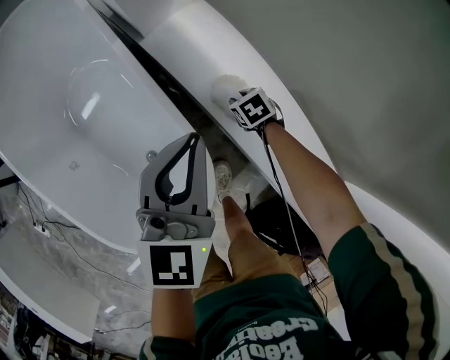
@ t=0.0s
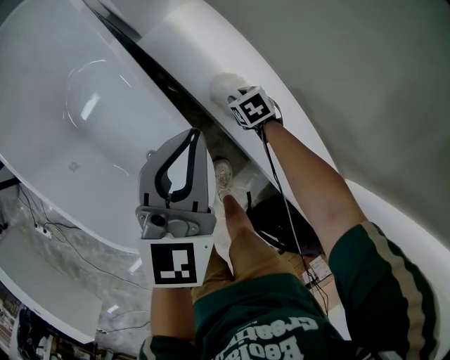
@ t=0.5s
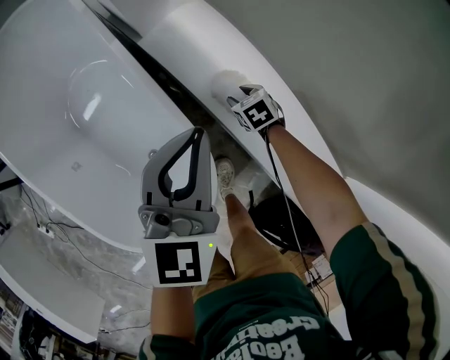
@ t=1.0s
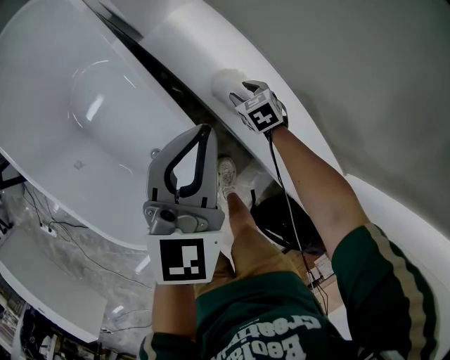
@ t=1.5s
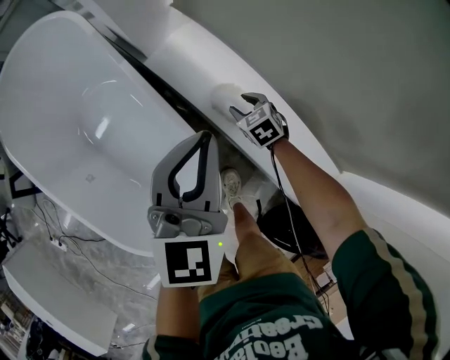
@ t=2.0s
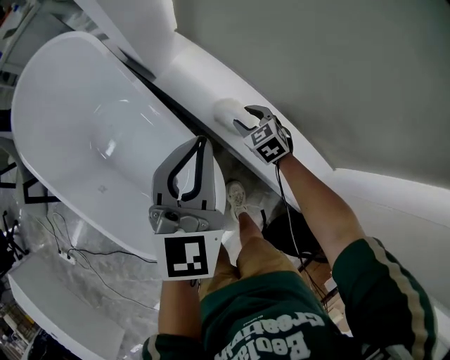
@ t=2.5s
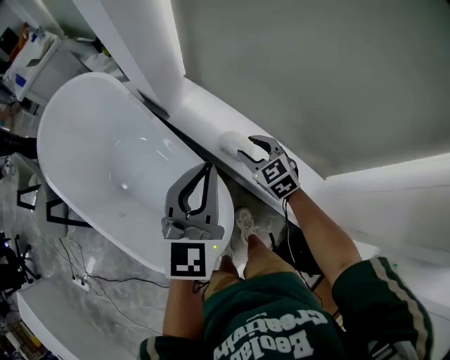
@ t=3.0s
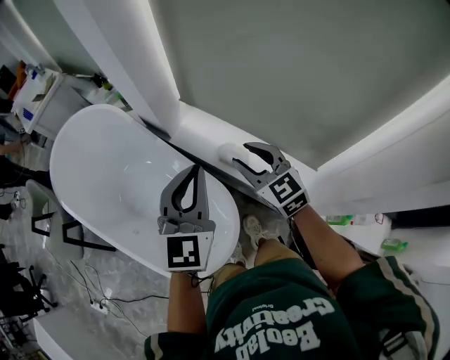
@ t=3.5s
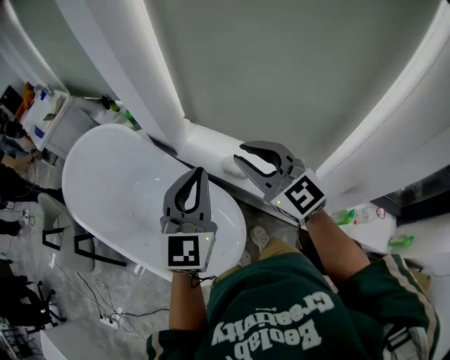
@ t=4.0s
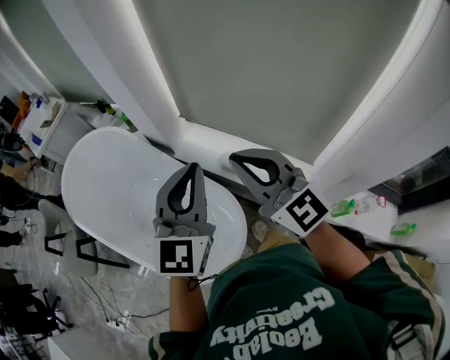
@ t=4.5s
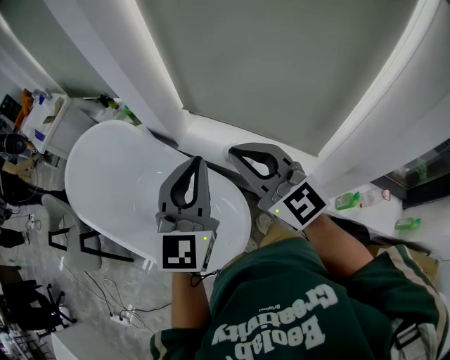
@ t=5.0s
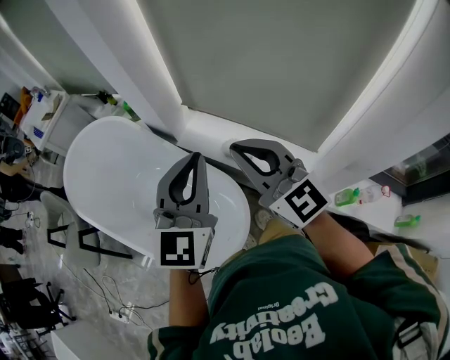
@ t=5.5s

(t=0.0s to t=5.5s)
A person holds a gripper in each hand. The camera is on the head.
t=0.0s - t=2.0s: The right gripper moves upward, roughly 10 cm, and opens. Meanwhile the left gripper goes approximately 5 cm upward.
t=2.0s - t=3.5s: The left gripper shifts approximately 20 cm upward and backward. Meanwhile the right gripper goes approximately 40 cm upward, and angles its fingers upward, by approximately 40 degrees.
t=3.5s - t=5.5s: The right gripper travels upward and backward by about 20 cm, turns by approximately 20 degrees, and closes up. The left gripper moves upward and backward, some 10 cm.

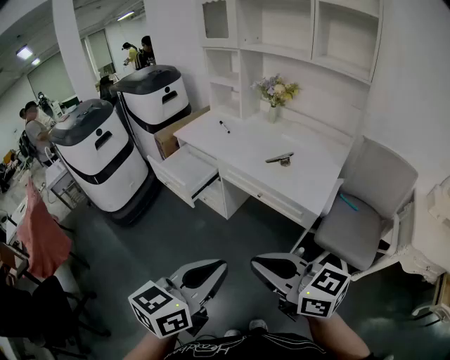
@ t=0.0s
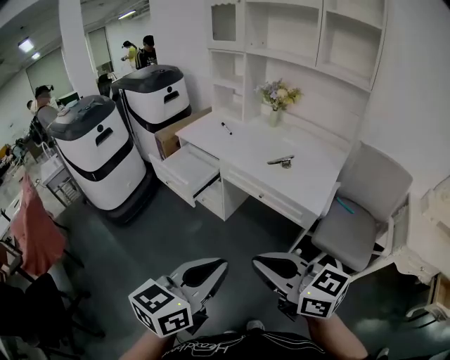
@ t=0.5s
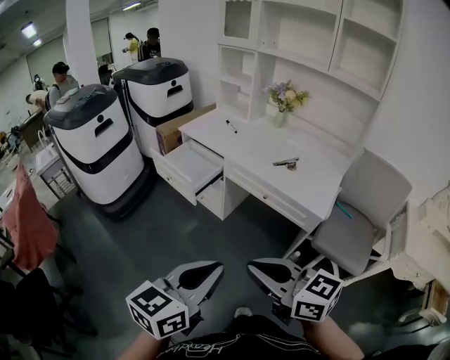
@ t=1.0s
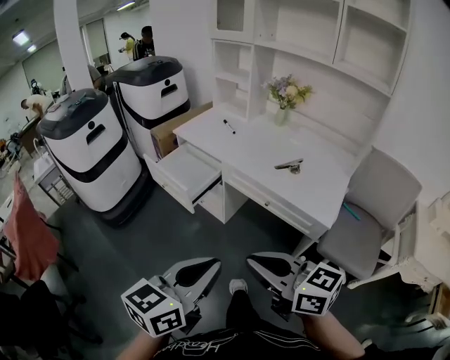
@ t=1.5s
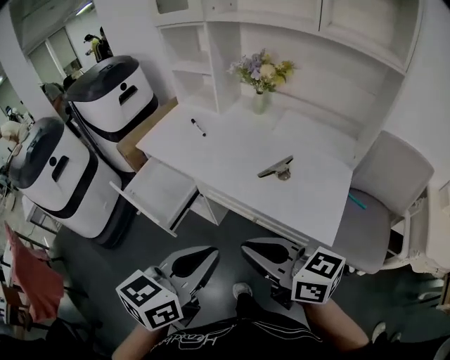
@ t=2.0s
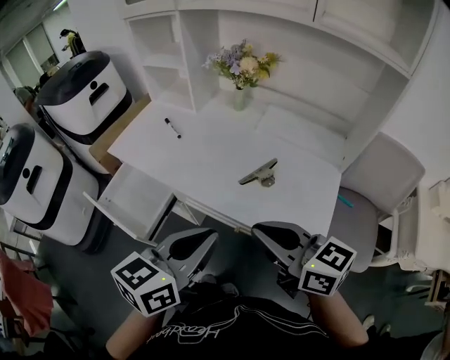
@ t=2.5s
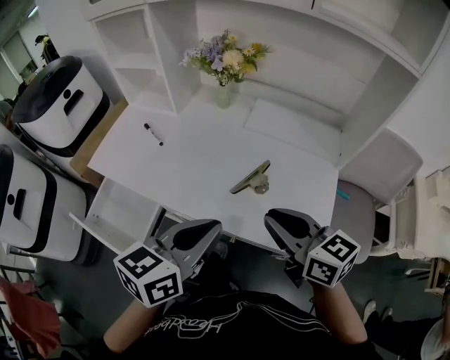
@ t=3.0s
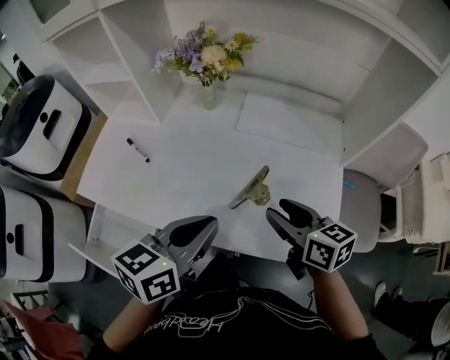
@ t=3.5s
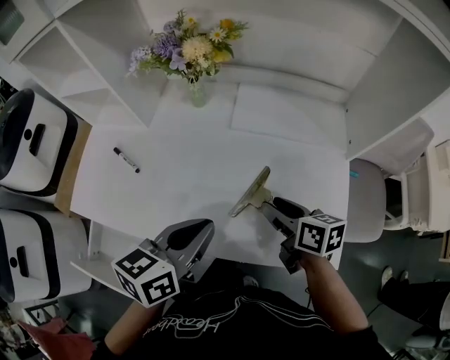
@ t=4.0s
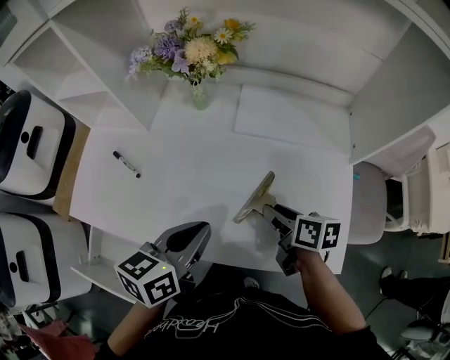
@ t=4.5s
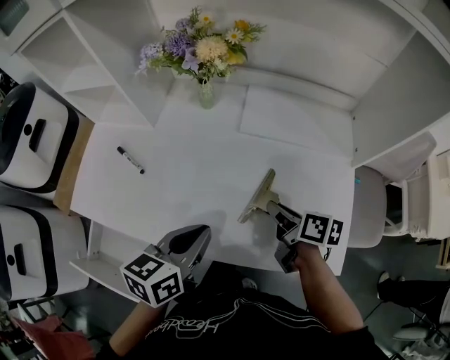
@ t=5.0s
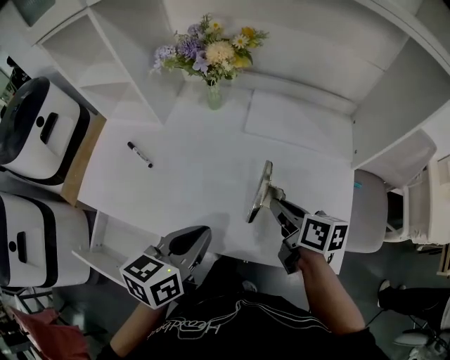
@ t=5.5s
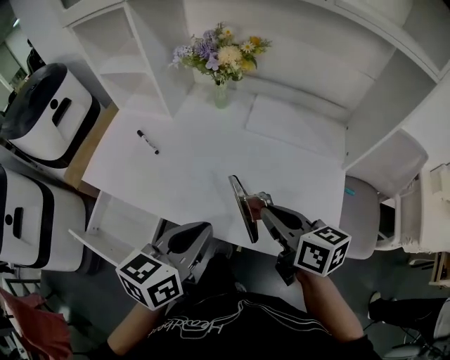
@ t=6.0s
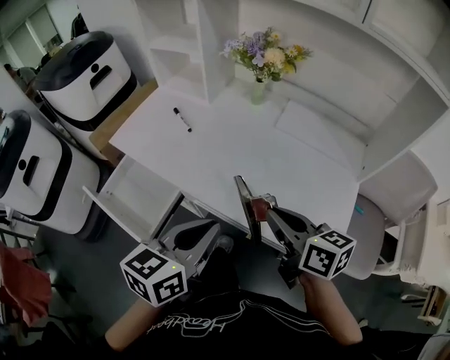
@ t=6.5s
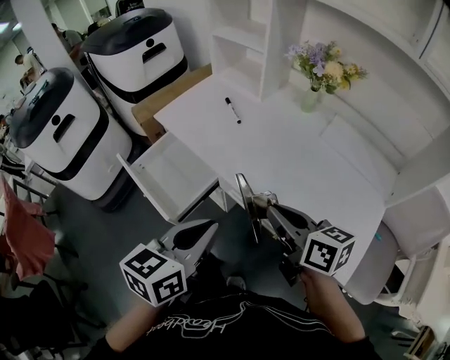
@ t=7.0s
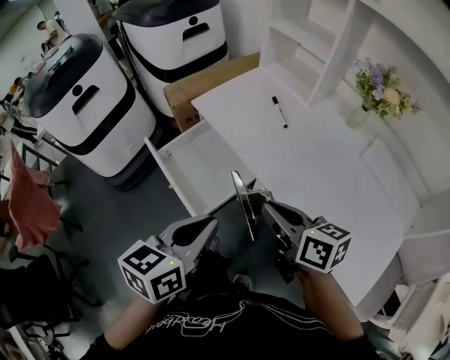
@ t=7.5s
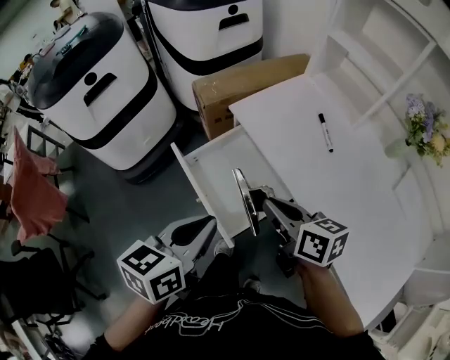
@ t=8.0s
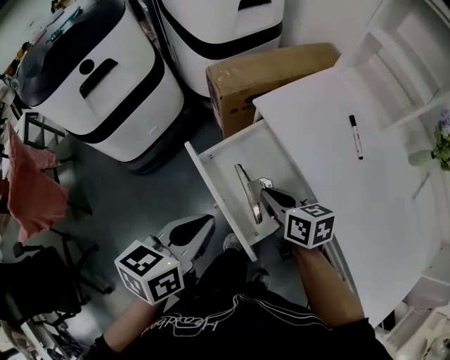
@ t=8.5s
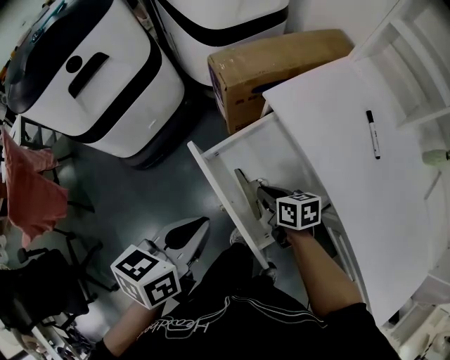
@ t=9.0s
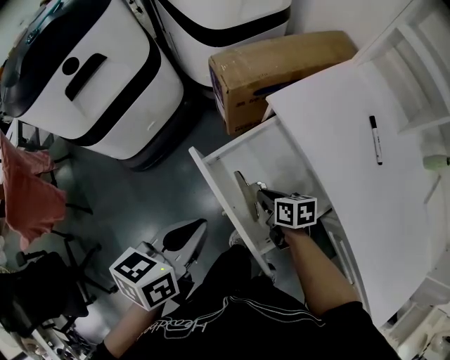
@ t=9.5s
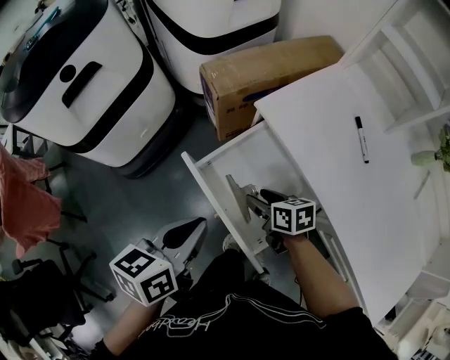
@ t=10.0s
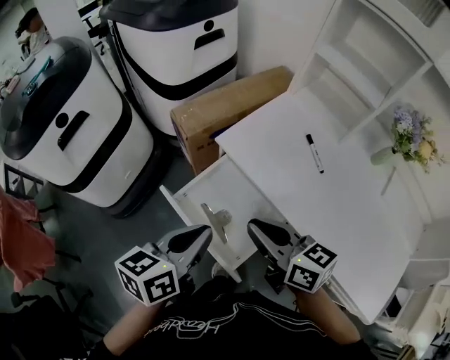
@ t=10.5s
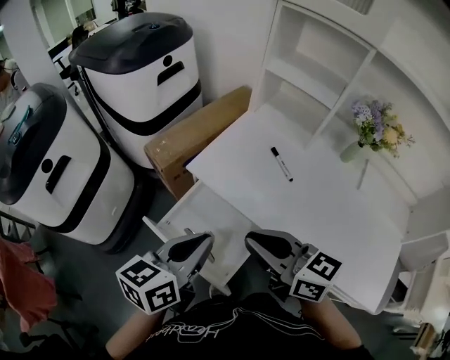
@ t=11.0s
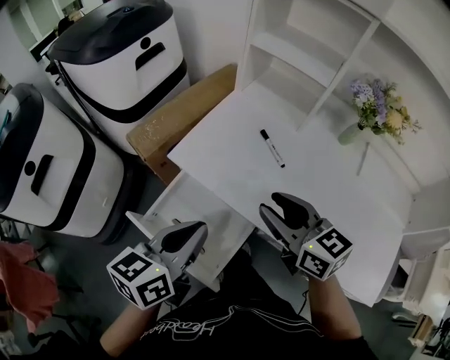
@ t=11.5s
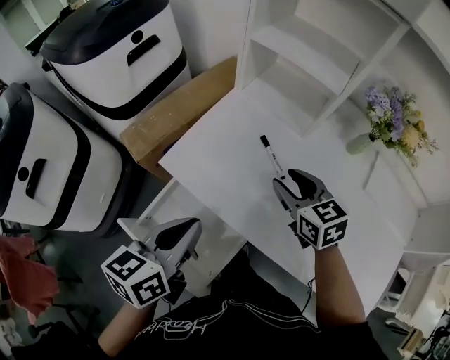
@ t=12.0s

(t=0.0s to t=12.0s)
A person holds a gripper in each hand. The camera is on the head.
t=0.0s - t=2.0s: Both grippers move forward, approximately 30 cm.
t=2.0s - t=4.0s: The left gripper changes place by roughly 35 cm, and turns by roughly 20 degrees. The right gripper moves approximately 40 cm, swivels approximately 50 degrees, and opens.
t=4.0s - t=6.0s: The left gripper goes about 10 cm backward, while the right gripper travels upward and backward by roughly 15 cm, and closes up.
t=6.0s - t=8.0s: The right gripper moves about 40 cm, and turns by roughly 40 degrees, while the left gripper shifts by roughly 40 cm, and turns by roughly 40 degrees.
t=8.0s - t=10.0s: The left gripper shifts roughly 15 cm to the left, forward and downward. The right gripper shifts some 25 cm downward, forward and to the left, turns by roughly 20 degrees, and opens up.
t=10.0s - t=12.0s: The right gripper moves roughly 35 cm, rotates roughly 40 degrees, and closes and opens again. Meanwhile the left gripper changes place by approximately 25 cm.

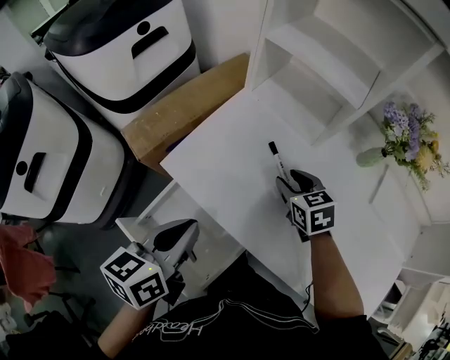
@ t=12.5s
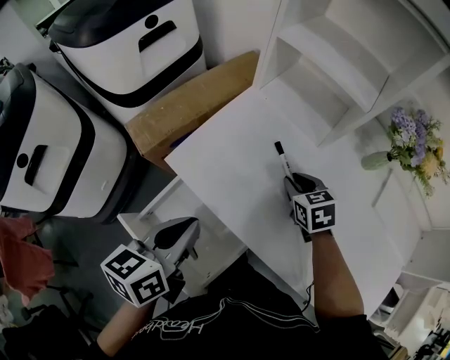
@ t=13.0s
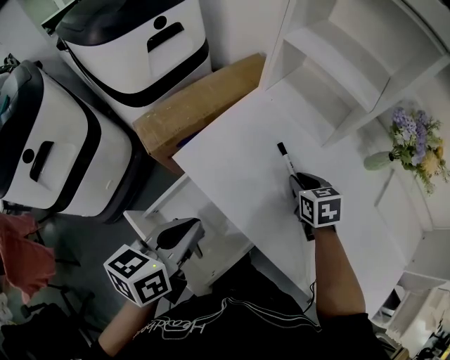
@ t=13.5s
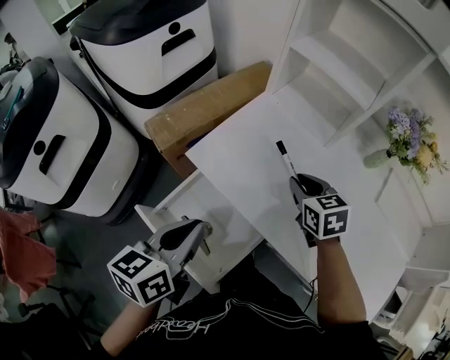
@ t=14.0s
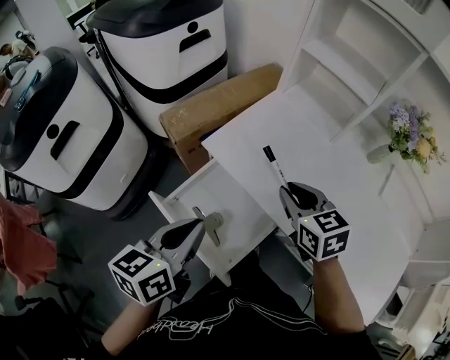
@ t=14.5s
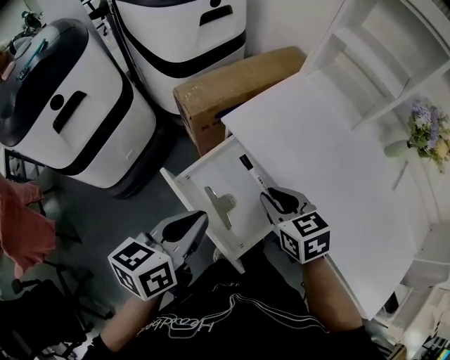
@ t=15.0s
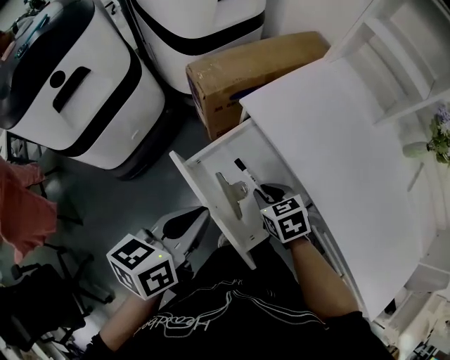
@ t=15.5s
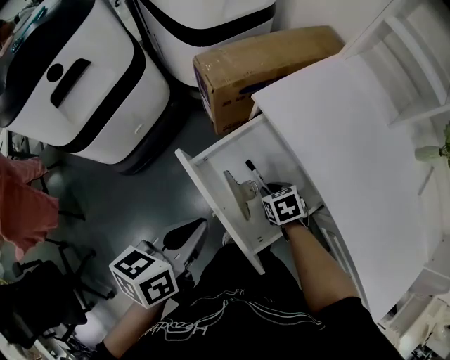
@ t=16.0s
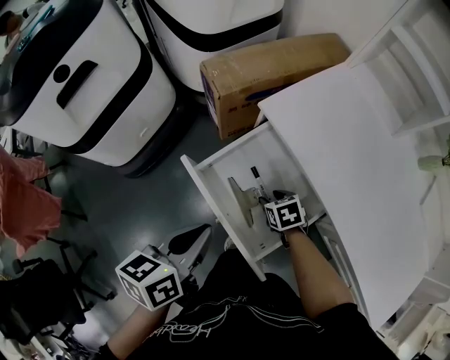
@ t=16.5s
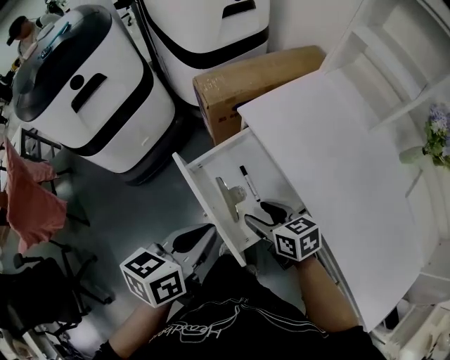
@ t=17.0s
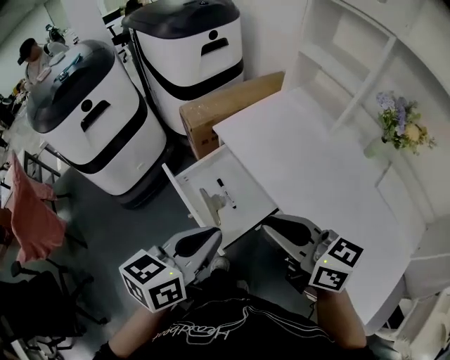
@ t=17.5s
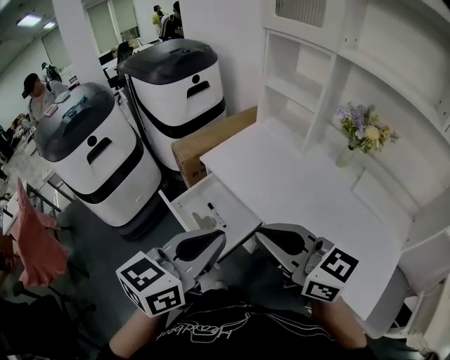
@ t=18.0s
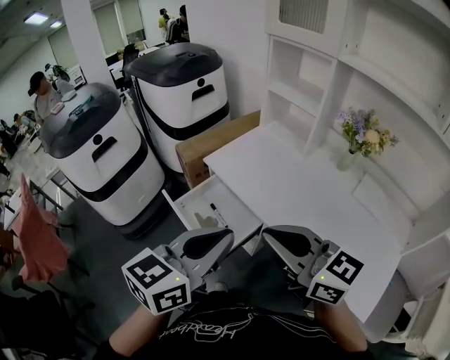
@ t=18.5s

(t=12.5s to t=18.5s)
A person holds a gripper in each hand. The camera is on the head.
t=12.5s - t=14.5s: The left gripper moves backward and to the left, approximately 15 cm; the right gripper is displaced backward, to the left and upward by approximately 20 cm.
t=14.5s - t=16.5s: The right gripper goes some 35 cm downward and to the left, turns by some 30 degrees, and opens its fingers. The left gripper heads downward and to the left, covering some 15 cm.
t=16.5s - t=18.5s: The right gripper travels upward and backward by approximately 60 cm, angles its fingers upward, by approximately 60 degrees, and closes; the left gripper shifts approximately 40 cm upward, to the right and backward, and changes its angle by some 40 degrees.

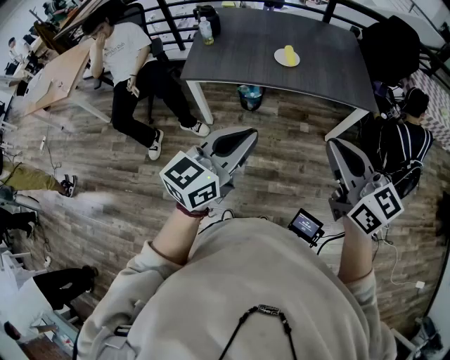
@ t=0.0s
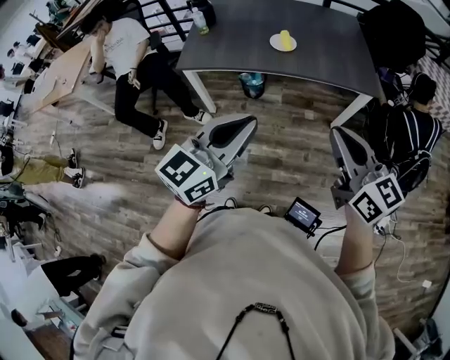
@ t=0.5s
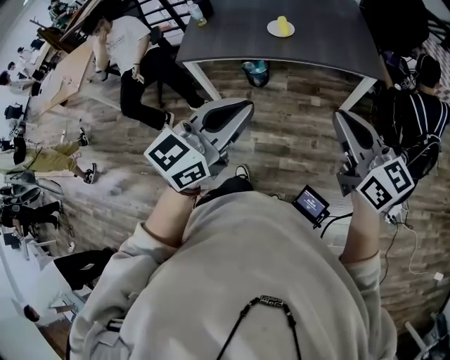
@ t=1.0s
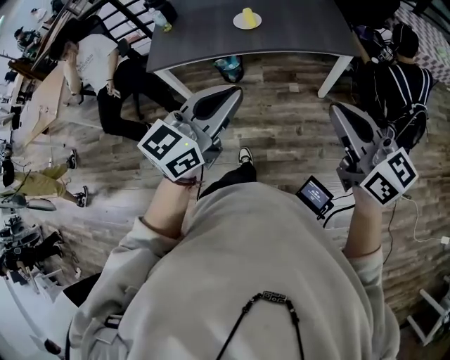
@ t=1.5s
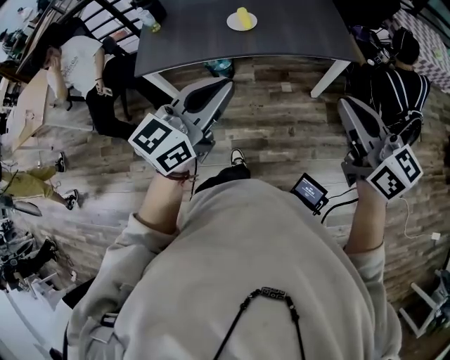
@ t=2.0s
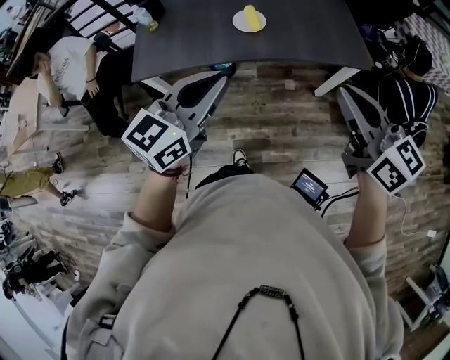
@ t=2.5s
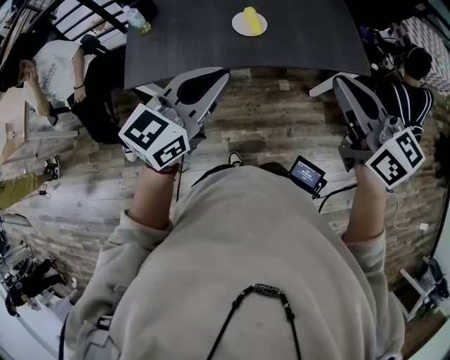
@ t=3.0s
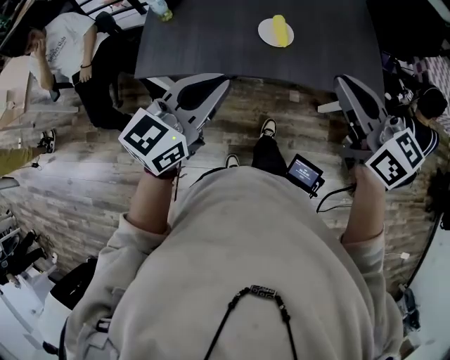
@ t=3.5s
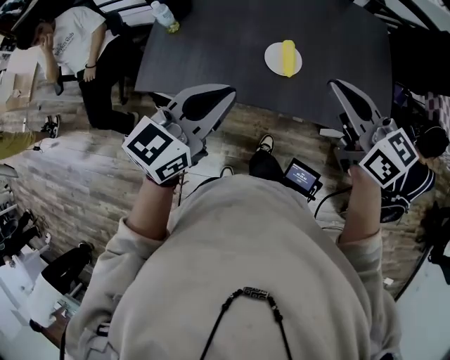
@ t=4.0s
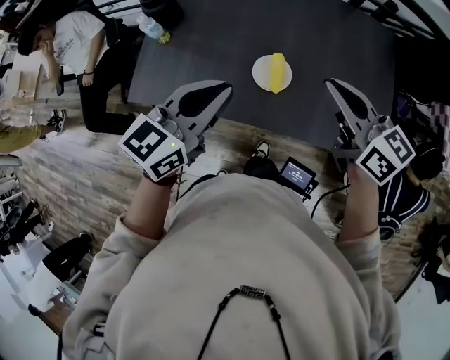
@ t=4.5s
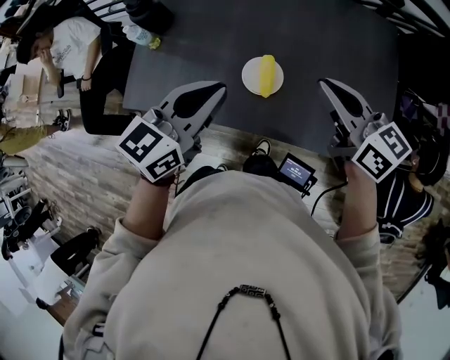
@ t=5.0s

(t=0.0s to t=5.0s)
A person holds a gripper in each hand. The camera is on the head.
t=0.0s - t=2.5s: The left gripper moves forward, some 20 cm. Meanwhile the right gripper moves forward and to the right, roughly 20 cm.
t=2.5s - t=5.0s: The two grippers go roughly 35 cm forward. The right gripper swivels roughly 20 degrees.
